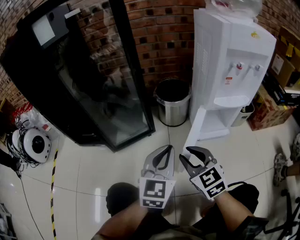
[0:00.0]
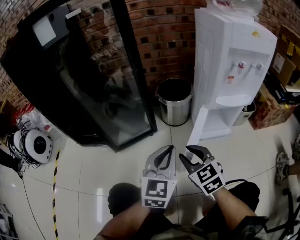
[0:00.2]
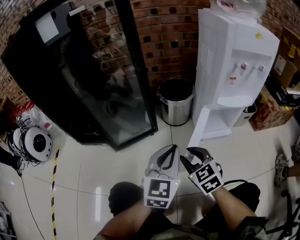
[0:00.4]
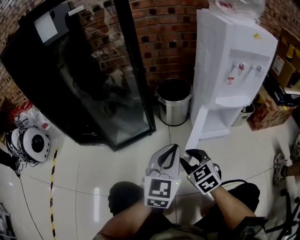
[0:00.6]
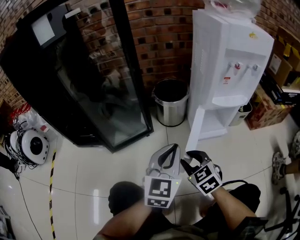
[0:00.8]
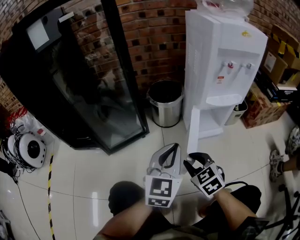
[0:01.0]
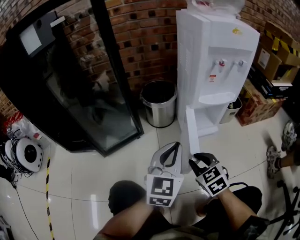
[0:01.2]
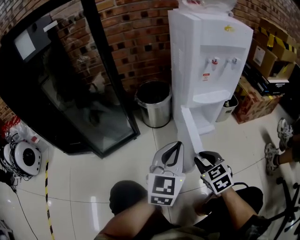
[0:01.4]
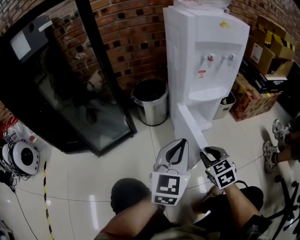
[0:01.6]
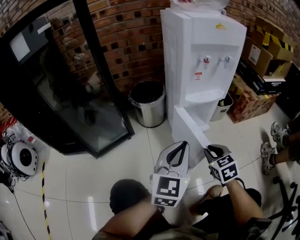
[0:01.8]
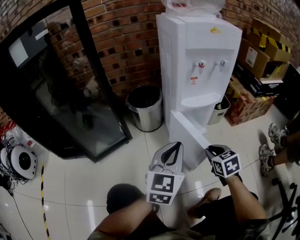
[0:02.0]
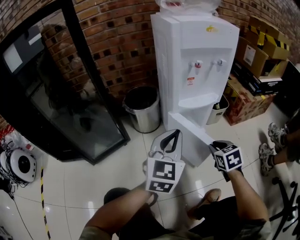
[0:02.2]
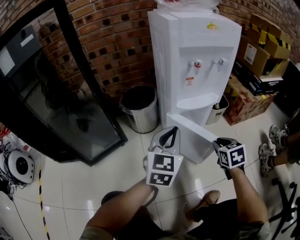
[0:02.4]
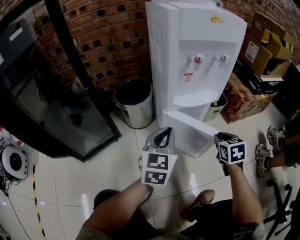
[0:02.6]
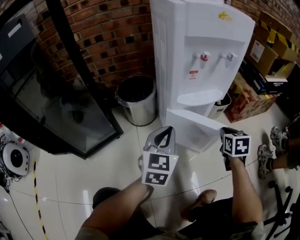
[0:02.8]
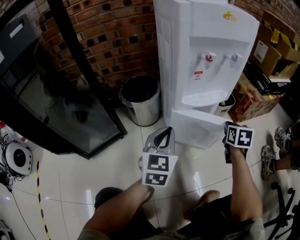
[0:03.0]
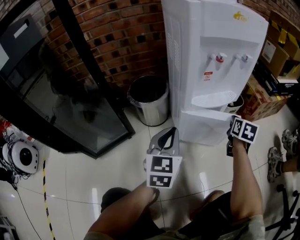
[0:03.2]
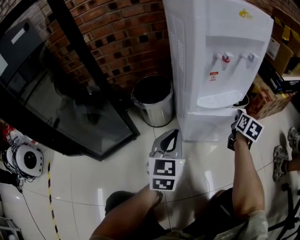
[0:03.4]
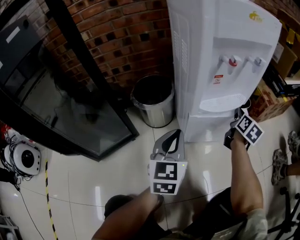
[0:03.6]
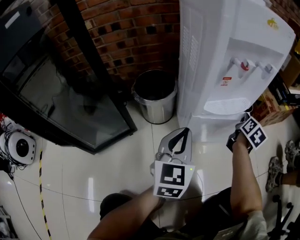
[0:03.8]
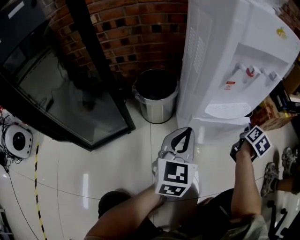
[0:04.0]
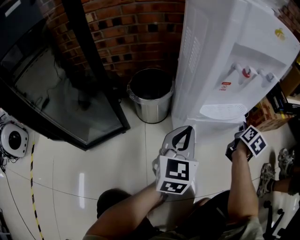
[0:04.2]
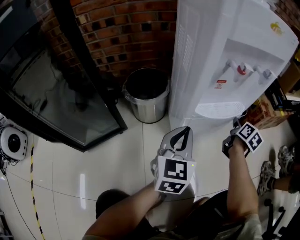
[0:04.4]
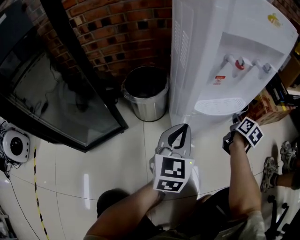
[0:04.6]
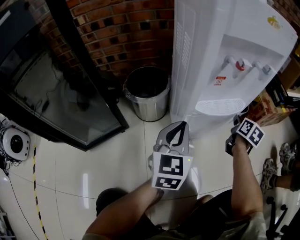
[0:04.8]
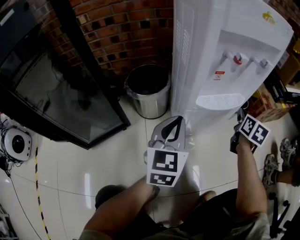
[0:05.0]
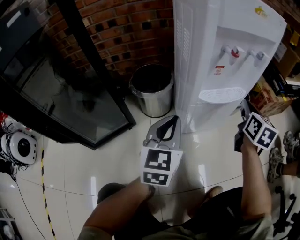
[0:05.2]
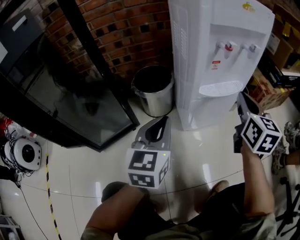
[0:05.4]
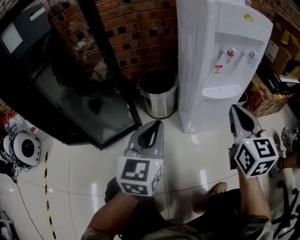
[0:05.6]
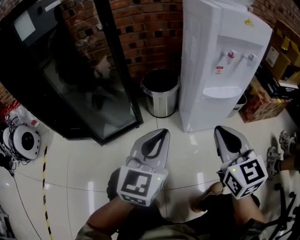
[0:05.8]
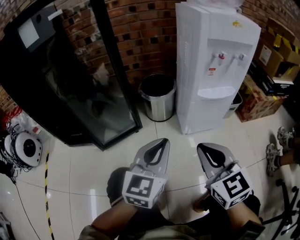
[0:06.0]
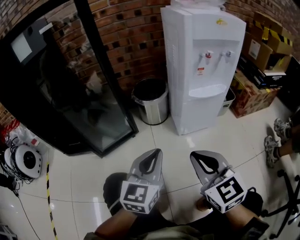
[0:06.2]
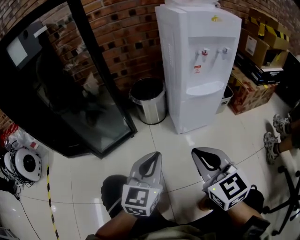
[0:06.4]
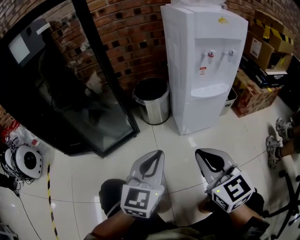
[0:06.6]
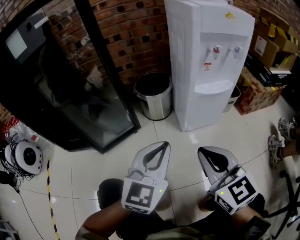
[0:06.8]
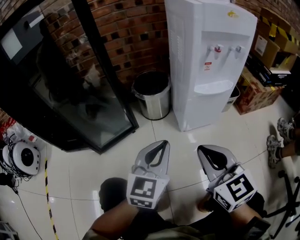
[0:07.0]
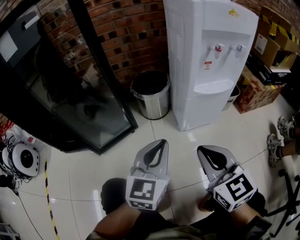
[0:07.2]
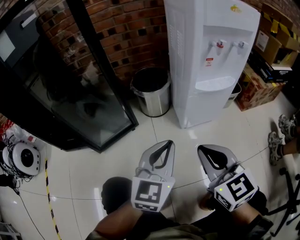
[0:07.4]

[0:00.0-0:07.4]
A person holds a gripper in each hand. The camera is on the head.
0:00.0 to 0:01.4: The right gripper travels to the right and downward by approximately 15 cm, and rotates some 20 degrees, while the left gripper moves to the right, roughly 10 cm.
0:01.4 to 0:03.0: The left gripper heads forward and downward, covering roughly 15 cm. The right gripper moves to the right and forward, roughly 30 cm, rotates approximately 40 degrees, and closes.
0:03.0 to 0:04.4: The left gripper goes some 5 cm forward. Meanwhile the right gripper travels forward by roughly 10 cm, and changes its angle by about 30 degrees.
0:04.4 to 0:06.0: The right gripper heads backward, to the left and upward, covering roughly 50 cm, and rotates approximately 70 degrees. The left gripper heads backward and to the left, covering approximately 25 cm.
0:06.0 to 0:07.4: There are only small adjustments of the grippers.

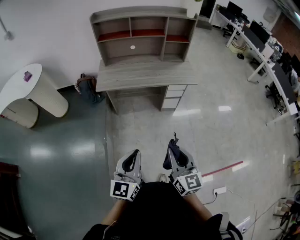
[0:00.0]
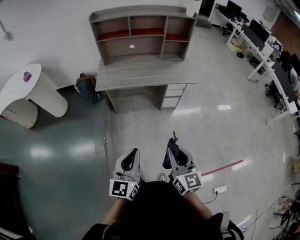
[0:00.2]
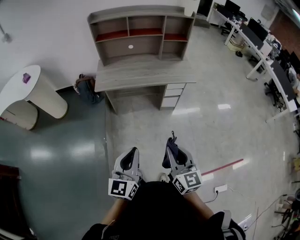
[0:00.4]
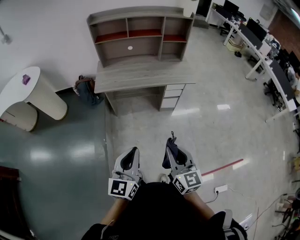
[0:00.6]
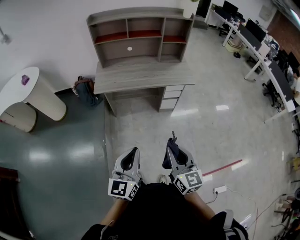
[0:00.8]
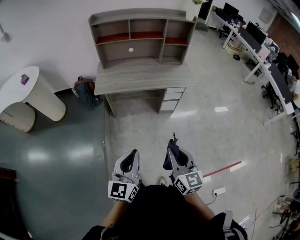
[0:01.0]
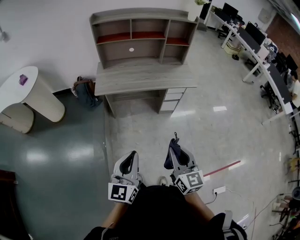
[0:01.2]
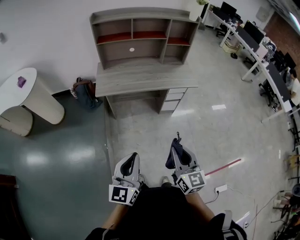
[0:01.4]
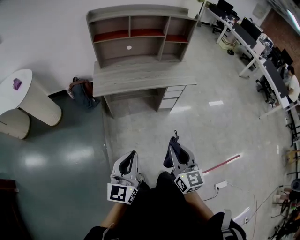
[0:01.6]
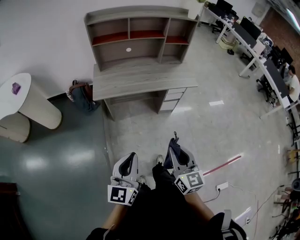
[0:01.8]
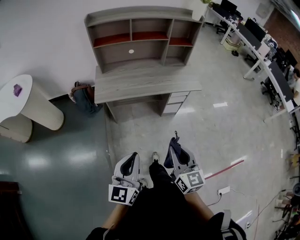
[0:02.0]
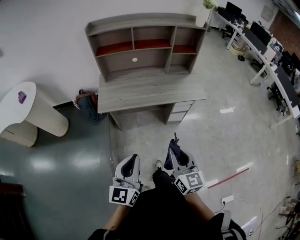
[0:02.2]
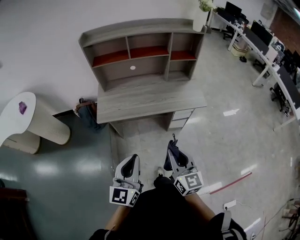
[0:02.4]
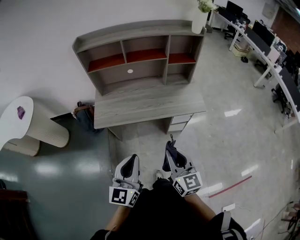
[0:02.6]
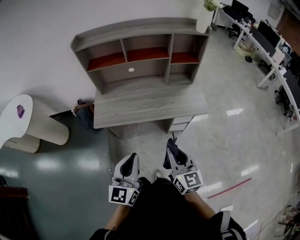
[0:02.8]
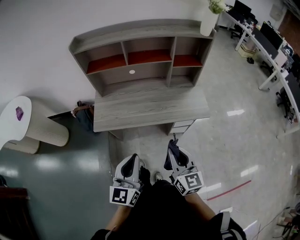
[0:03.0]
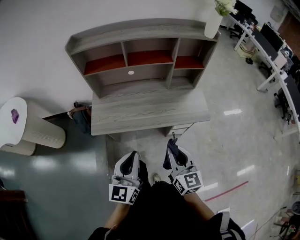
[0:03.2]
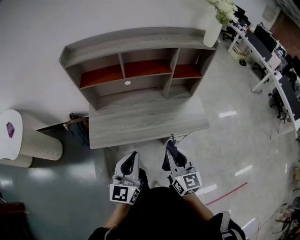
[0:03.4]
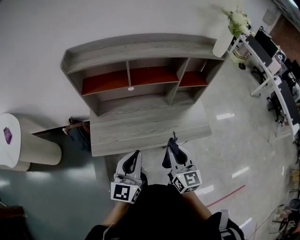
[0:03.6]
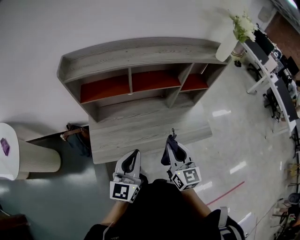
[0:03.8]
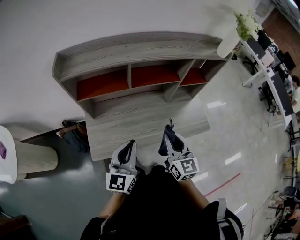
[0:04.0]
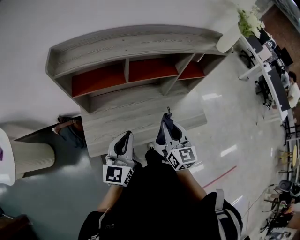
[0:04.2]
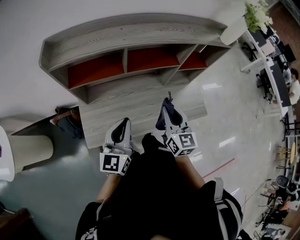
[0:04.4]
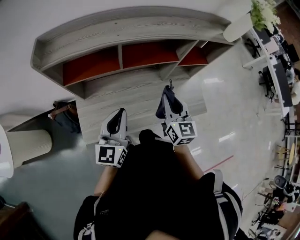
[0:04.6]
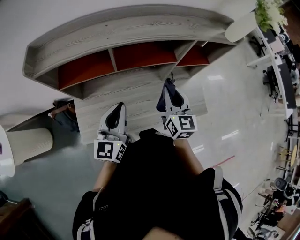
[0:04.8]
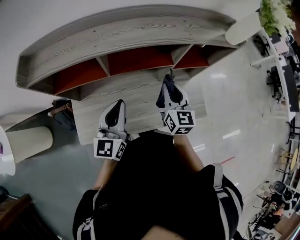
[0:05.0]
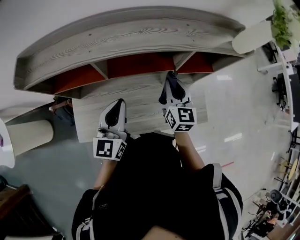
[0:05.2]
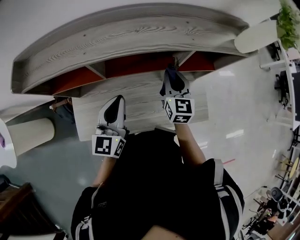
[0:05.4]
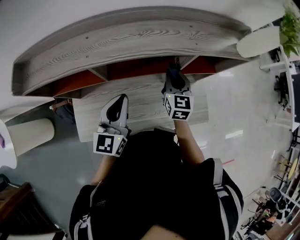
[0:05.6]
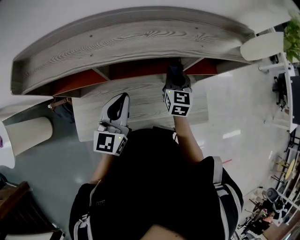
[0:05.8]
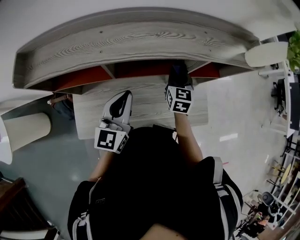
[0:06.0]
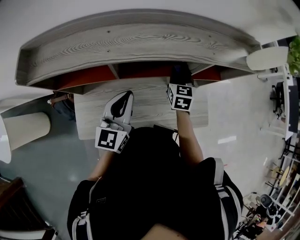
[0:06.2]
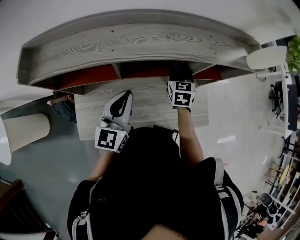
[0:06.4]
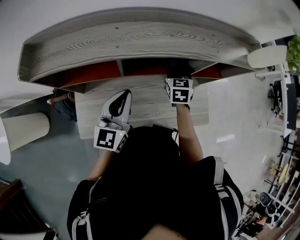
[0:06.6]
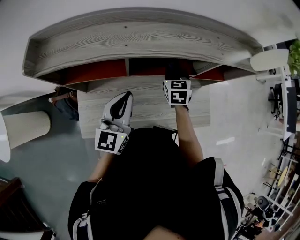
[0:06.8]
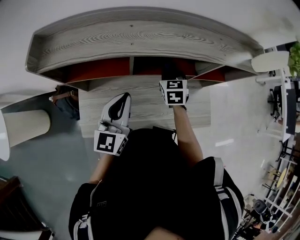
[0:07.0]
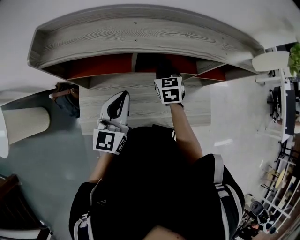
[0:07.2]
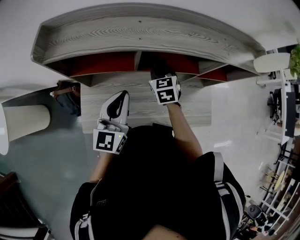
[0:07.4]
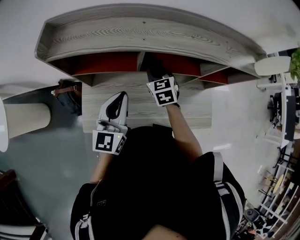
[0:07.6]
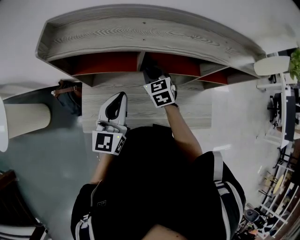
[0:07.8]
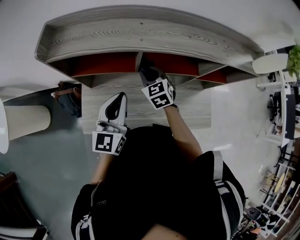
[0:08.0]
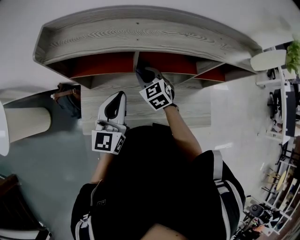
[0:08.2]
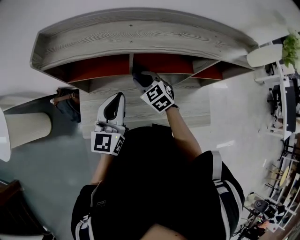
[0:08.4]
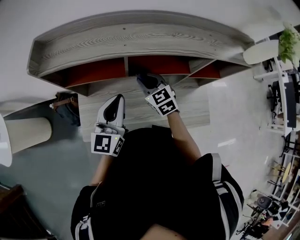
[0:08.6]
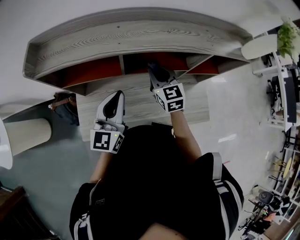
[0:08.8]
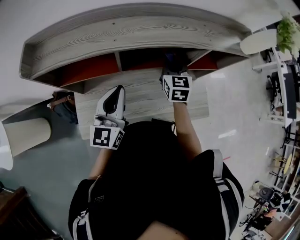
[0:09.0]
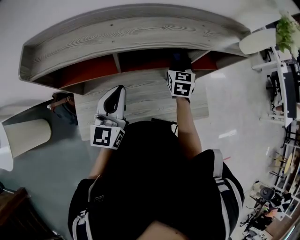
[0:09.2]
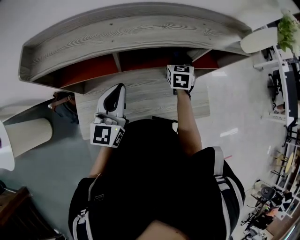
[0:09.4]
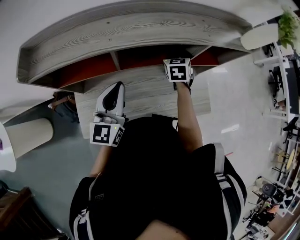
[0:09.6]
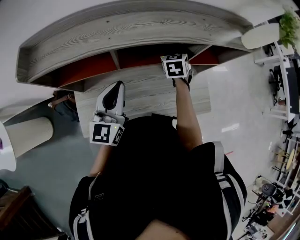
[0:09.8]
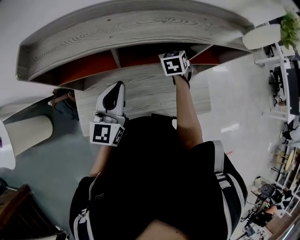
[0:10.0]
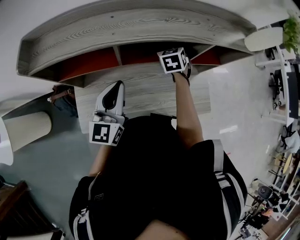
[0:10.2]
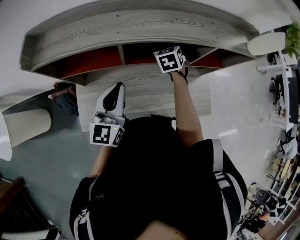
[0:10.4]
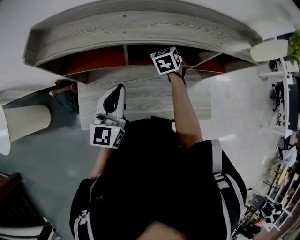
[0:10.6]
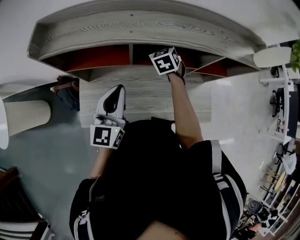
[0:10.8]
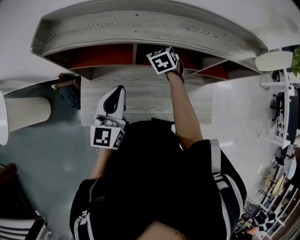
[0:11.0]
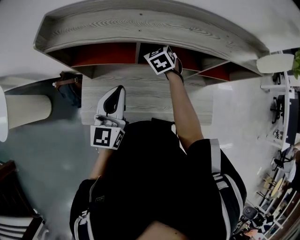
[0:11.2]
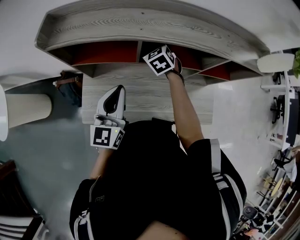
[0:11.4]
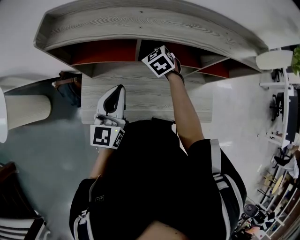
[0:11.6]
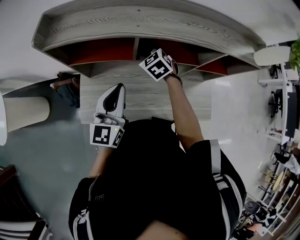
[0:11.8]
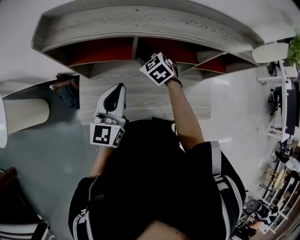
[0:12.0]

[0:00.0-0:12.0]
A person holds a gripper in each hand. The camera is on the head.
0:00.0 to 0:01.6: The two grippers go roughly 10 cm to the left and forward.
0:01.6 to 0:03.0: Both grippers move forward, some 30 cm.
0:03.0 to 0:04.4: Both grippers travel together forward, roughly 30 cm.
0:04.4 to 0:06.0: The right gripper moves forward, some 25 cm. Meanwhile the left gripper goes about 20 cm forward.
0:06.0 to 0:07.6: The right gripper moves to the left, about 20 cm, and swivels roughly 30 degrees. Meanwhile the left gripper moves to the left and backward, about 10 cm.
0:07.6 to 0:09.0: The right gripper travels to the right by approximately 15 cm, and swivels approximately 30 degrees. The left gripper changes place by roughly 5 cm.
0:09.0 to 0:10.4: The right gripper goes approximately 10 cm downward and forward, and changes its angle by approximately 30 degrees.
0:10.4 to 0:12.0: The right gripper is displaced to the left and backward by about 15 cm, and changes its angle by approximately 30 degrees.

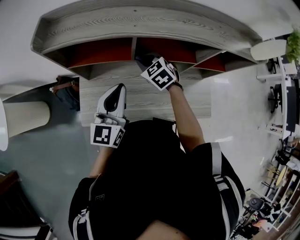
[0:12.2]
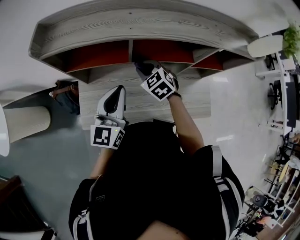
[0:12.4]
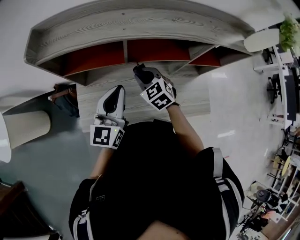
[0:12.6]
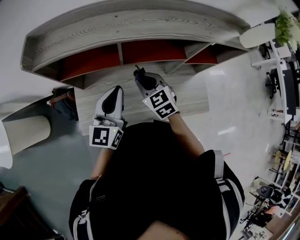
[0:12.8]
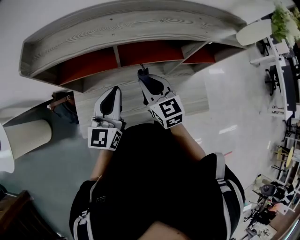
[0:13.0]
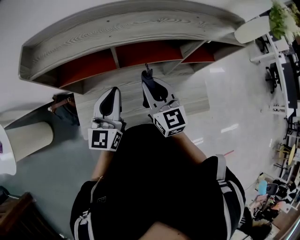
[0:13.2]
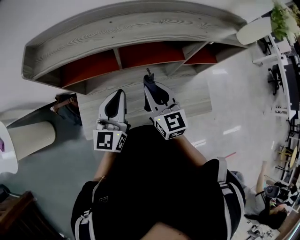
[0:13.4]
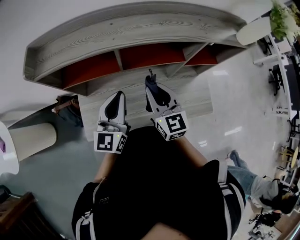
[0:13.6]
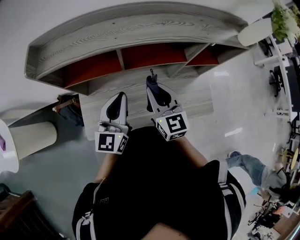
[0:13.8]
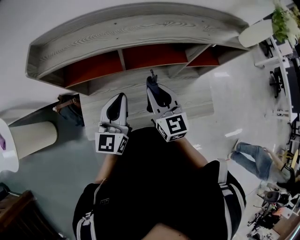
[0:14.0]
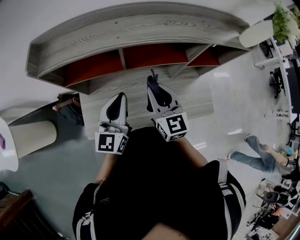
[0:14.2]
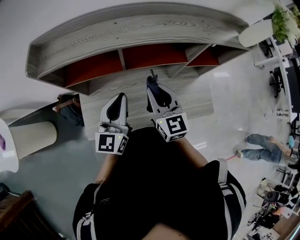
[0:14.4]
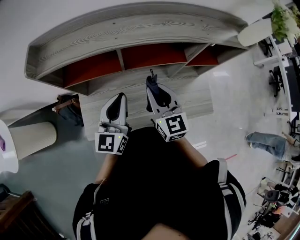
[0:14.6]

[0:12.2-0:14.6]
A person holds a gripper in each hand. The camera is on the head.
0:12.2 to 0:13.4: The right gripper heads backward, upward and to the right, covering about 15 cm, and tips its fingers upward by some 30 degrees.
0:13.4 to 0:14.6: The two grippers keep their place.

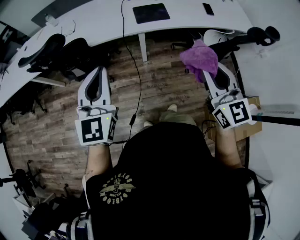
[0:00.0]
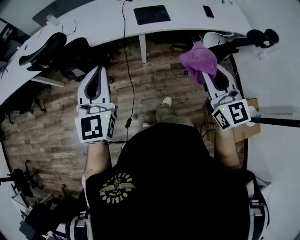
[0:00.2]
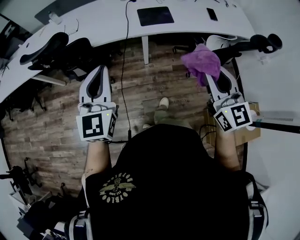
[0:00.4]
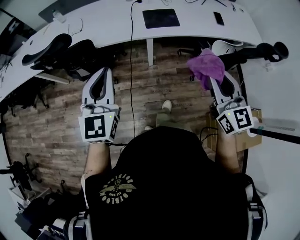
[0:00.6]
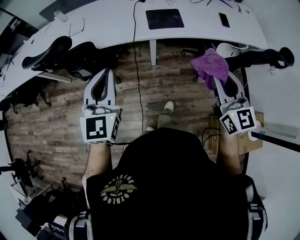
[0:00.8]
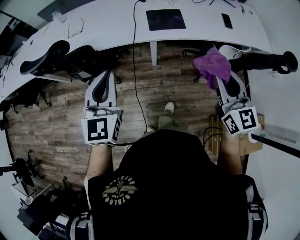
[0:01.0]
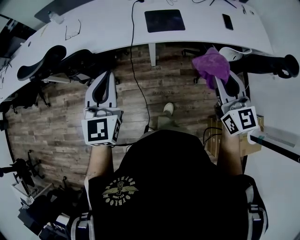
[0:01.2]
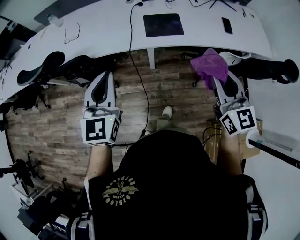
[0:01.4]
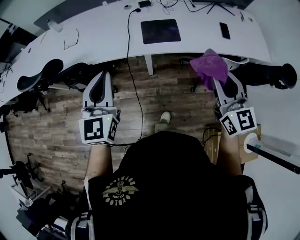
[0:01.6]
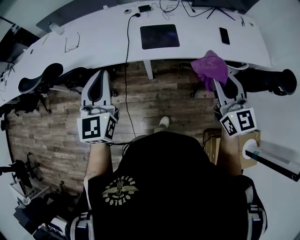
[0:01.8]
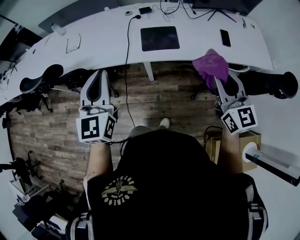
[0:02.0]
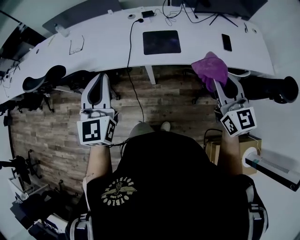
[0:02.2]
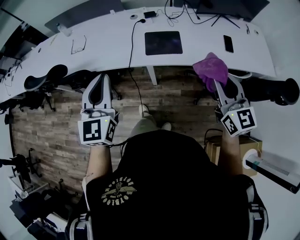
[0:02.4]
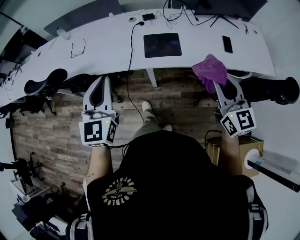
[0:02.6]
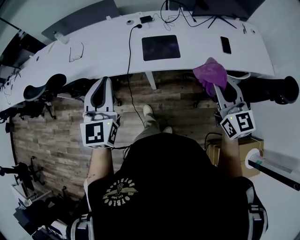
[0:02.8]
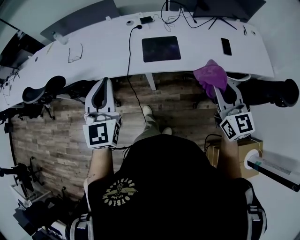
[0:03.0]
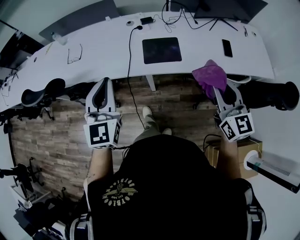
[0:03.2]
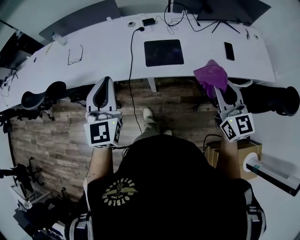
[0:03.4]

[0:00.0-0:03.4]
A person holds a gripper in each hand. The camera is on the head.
0:00.0 to 0:01.6: The right gripper moves forward and to the right, some 20 cm. The left gripper travels forward by some 20 cm.
0:01.6 to 0:03.4: The grippers both shift forward by roughly 10 cm.
